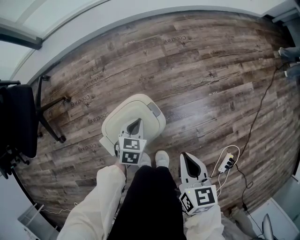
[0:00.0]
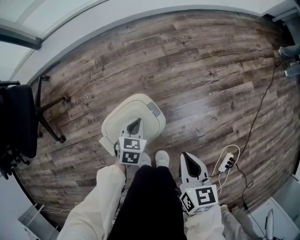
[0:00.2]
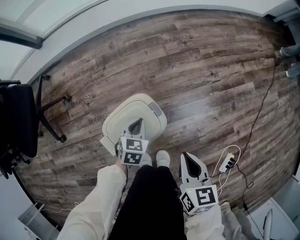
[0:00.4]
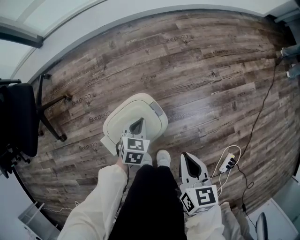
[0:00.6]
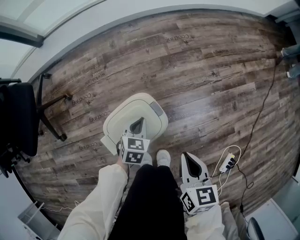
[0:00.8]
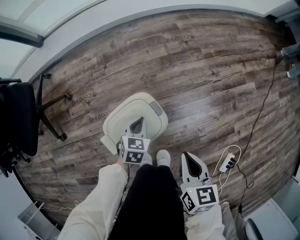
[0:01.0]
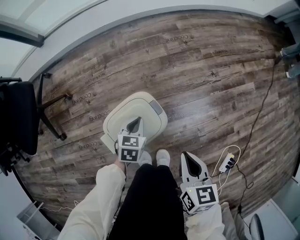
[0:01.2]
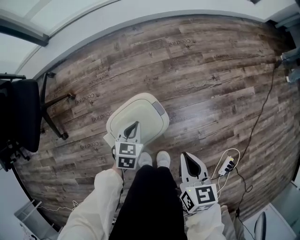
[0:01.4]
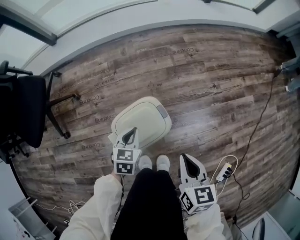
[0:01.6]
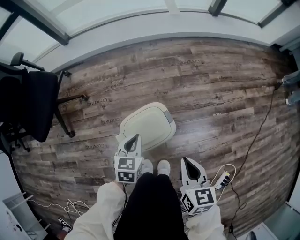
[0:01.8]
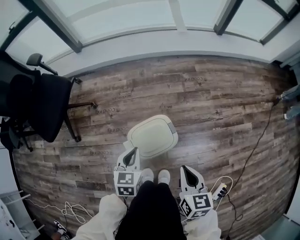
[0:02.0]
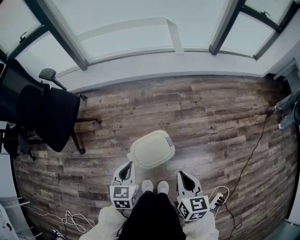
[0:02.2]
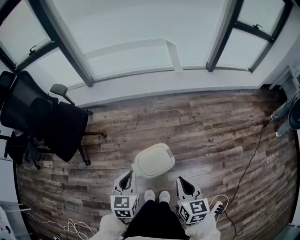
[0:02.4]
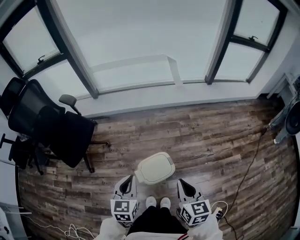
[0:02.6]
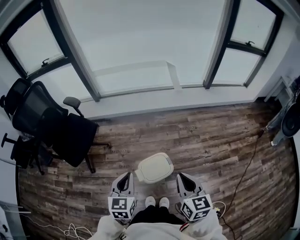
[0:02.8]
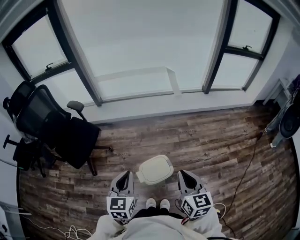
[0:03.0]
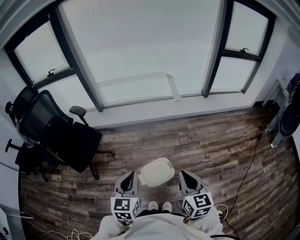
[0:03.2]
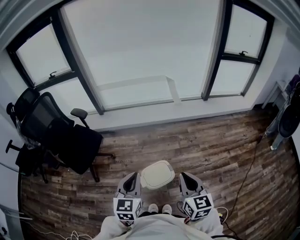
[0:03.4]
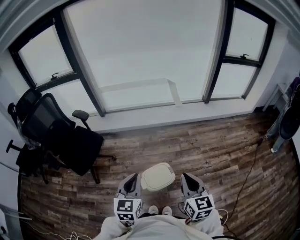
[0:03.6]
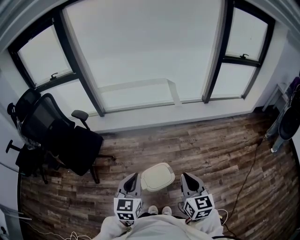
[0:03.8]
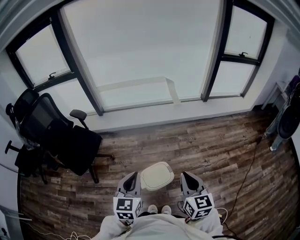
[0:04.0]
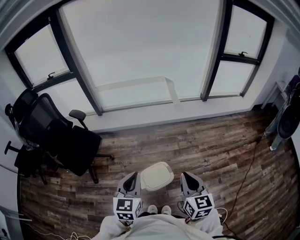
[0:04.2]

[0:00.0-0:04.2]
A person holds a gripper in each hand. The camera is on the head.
0:00.0 to 0:01.4: The grippers move only a little.
0:01.4 to 0:02.8: The two grippers go some 50 cm upward. The left gripper changes its angle by roughly 30 degrees. The right gripper rotates roughly 30 degrees.
0:02.8 to 0:04.2: The grippers both shift upward by approximately 10 cm.

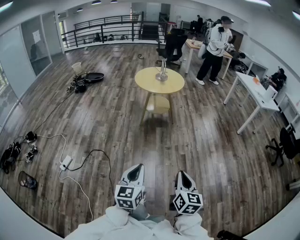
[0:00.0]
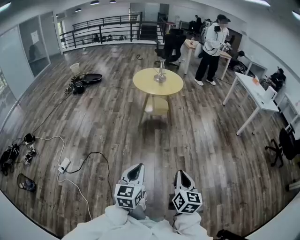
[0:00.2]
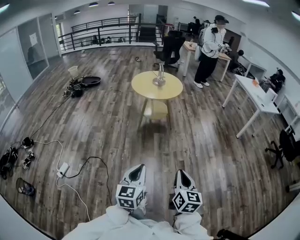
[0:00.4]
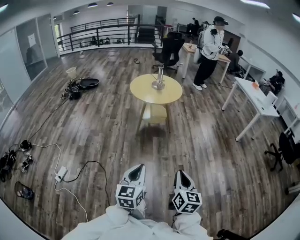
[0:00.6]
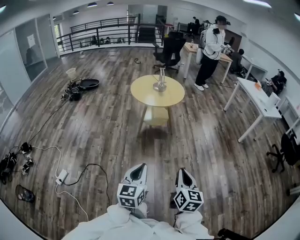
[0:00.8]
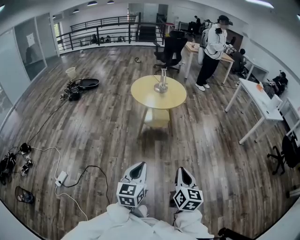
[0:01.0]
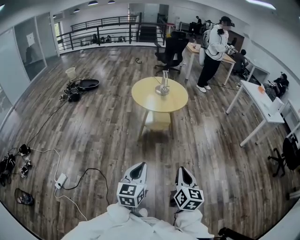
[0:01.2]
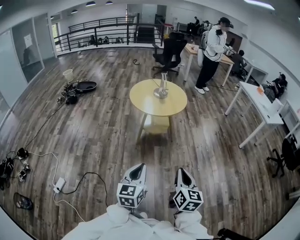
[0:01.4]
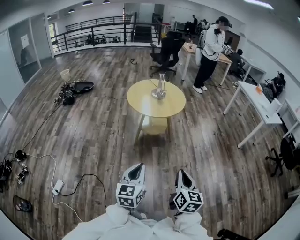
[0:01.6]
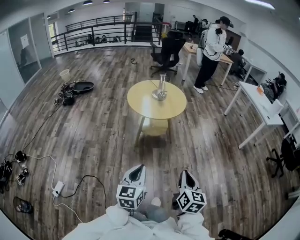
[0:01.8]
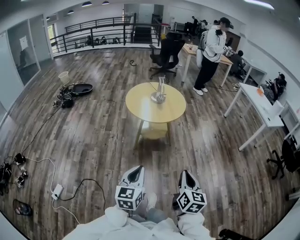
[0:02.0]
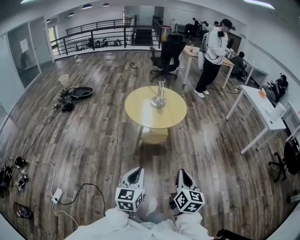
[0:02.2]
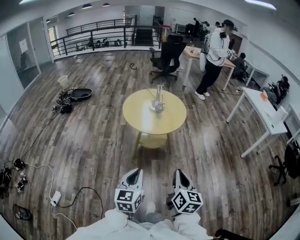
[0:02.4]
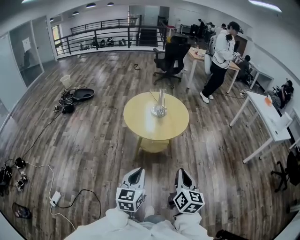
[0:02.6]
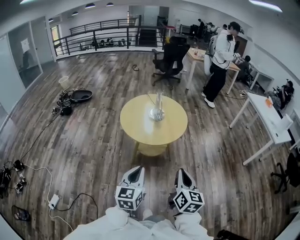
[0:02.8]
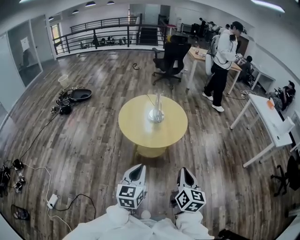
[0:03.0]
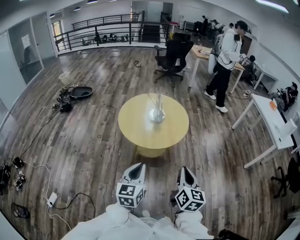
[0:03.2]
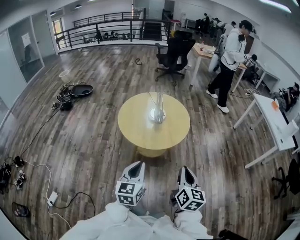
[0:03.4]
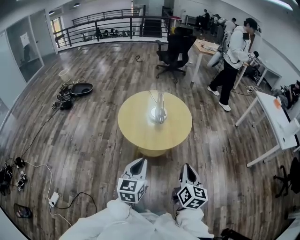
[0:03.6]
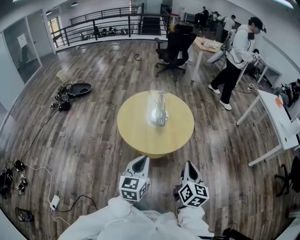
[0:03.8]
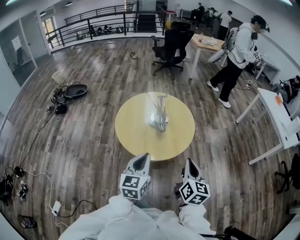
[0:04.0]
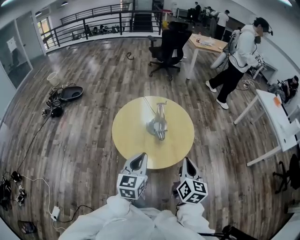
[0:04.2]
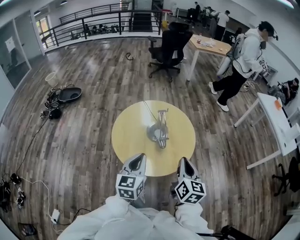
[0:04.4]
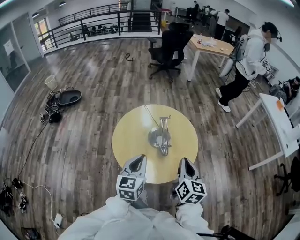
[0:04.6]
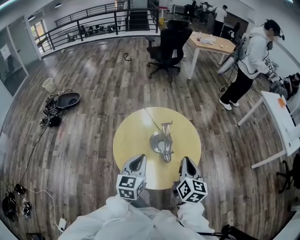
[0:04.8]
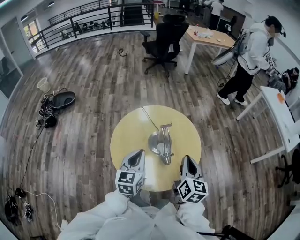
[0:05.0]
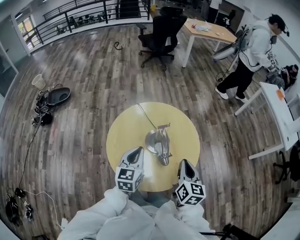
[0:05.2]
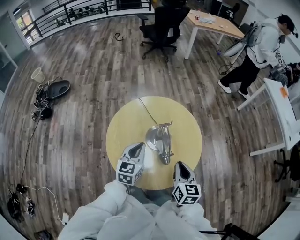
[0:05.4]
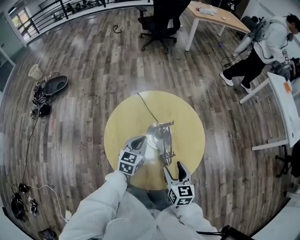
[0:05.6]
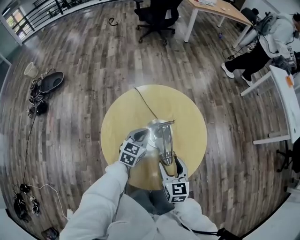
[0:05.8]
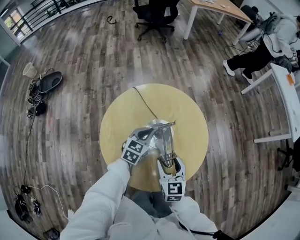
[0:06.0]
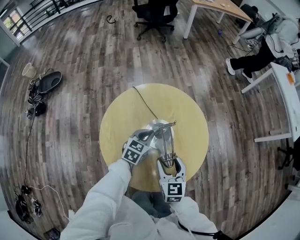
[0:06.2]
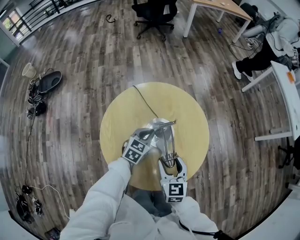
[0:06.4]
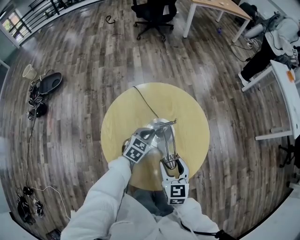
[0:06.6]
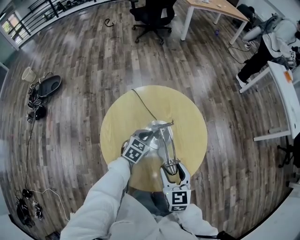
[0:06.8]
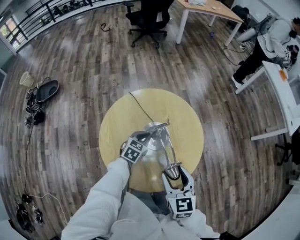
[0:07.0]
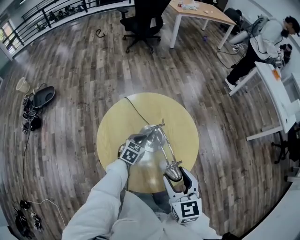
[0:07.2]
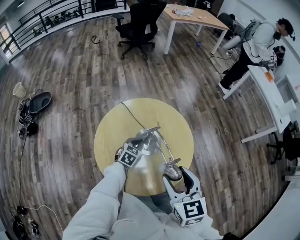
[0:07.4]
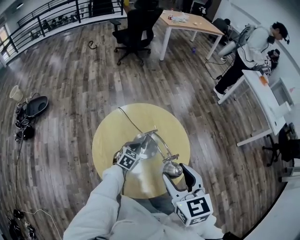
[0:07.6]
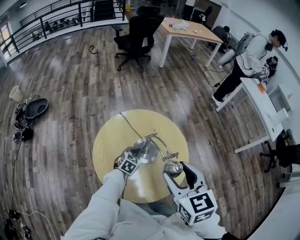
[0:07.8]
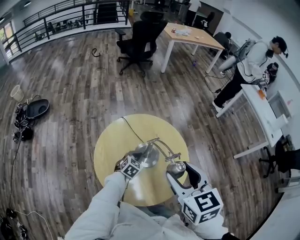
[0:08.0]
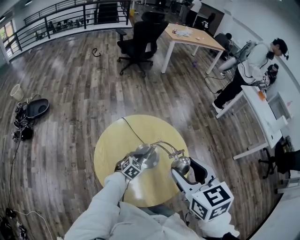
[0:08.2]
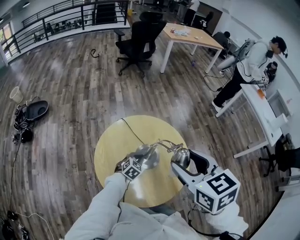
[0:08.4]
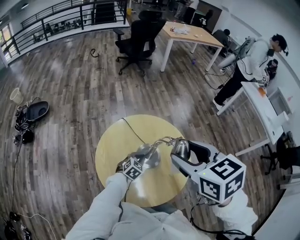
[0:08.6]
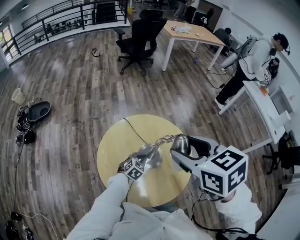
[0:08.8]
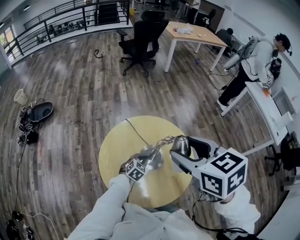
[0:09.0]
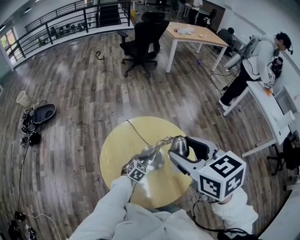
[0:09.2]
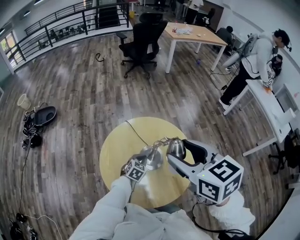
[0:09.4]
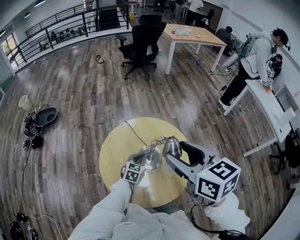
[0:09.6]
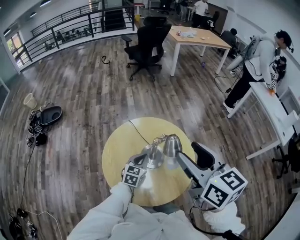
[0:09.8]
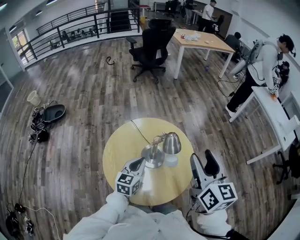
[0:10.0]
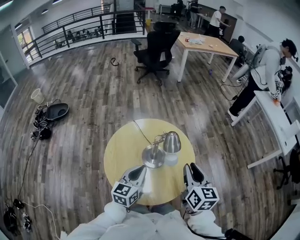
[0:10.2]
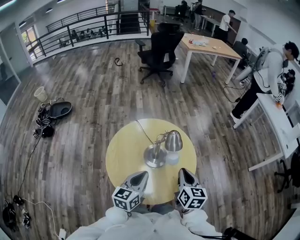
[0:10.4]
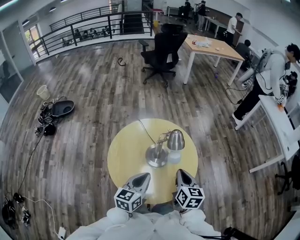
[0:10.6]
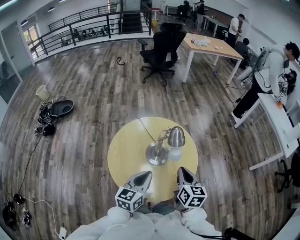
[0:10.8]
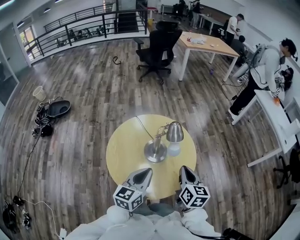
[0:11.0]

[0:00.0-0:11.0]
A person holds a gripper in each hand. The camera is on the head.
0:00.0 to 0:01.6: The two grippers go approximately 35 cm forward.
0:01.6 to 0:03.2: Both grippers travel together forward, about 35 cm.
0:03.2 to 0:04.8: Both grippers move forward, about 40 cm.
0:04.8 to 0:06.2: The right gripper goes some 20 cm downward, forward and to the left, changes its angle by about 20 degrees, and opens up. Meanwhile the left gripper shifts approximately 30 cm forward and downward, and turns by some 30 degrees.
0:06.2 to 0:07.8: The right gripper shifts roughly 25 cm upward.
0:07.8 to 0:09.4: The right gripper travels upward and forward by about 10 cm.
0:09.4 to 0:11.0: The right gripper shifts about 25 cm downward, to the right and backward, rotates roughly 30 degrees, and closes up. The left gripper moves upward and backward, approximately 30 cm, and points its fingers roughly 30 degrees further upward.

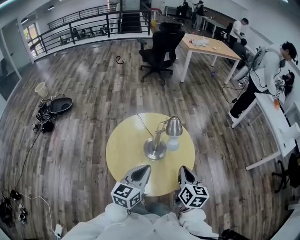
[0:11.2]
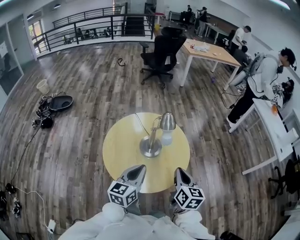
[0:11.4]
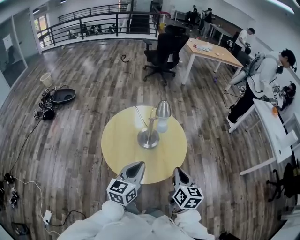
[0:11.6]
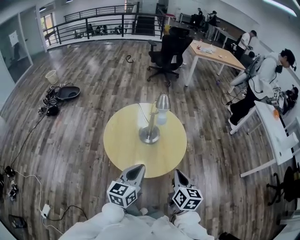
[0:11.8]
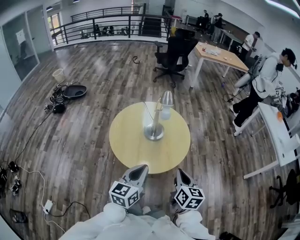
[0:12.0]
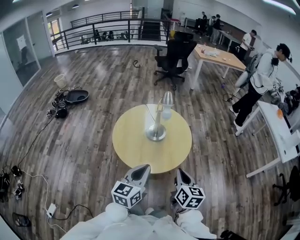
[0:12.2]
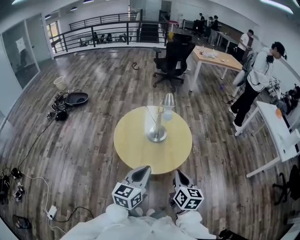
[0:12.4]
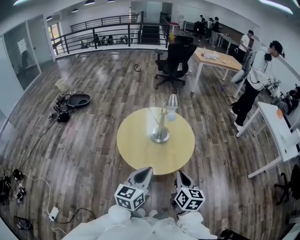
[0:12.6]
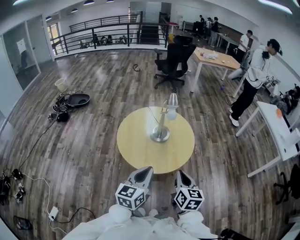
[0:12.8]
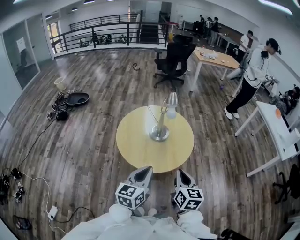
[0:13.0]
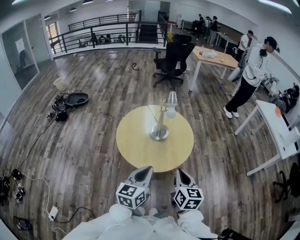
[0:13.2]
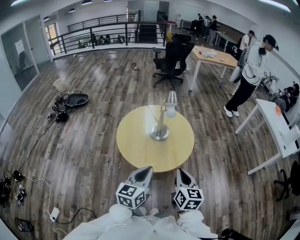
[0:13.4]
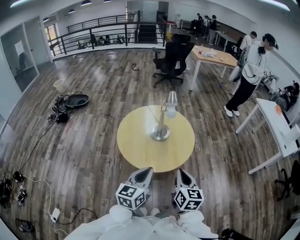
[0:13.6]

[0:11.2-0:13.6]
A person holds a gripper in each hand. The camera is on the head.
0:11.2 to 0:12.4: The two grippers go some 20 cm backward.
0:12.4 to 0:13.6: The grippers stay close to where they were, moving slightly.

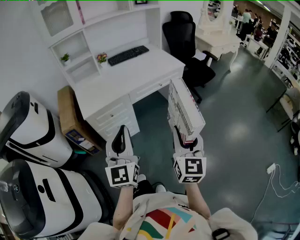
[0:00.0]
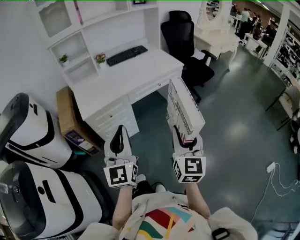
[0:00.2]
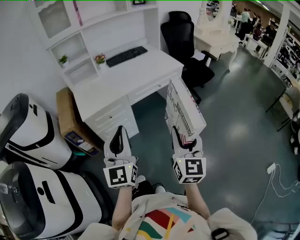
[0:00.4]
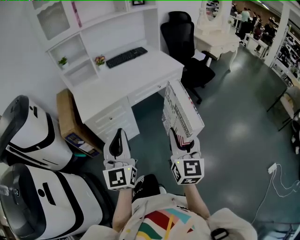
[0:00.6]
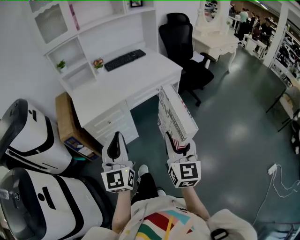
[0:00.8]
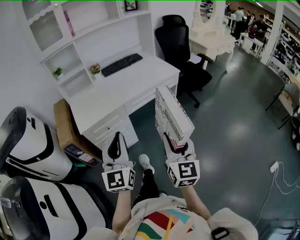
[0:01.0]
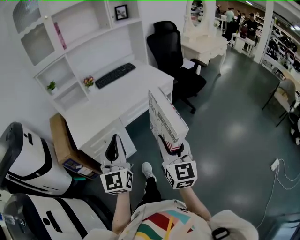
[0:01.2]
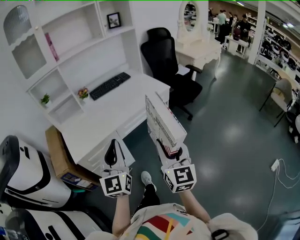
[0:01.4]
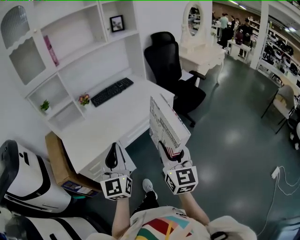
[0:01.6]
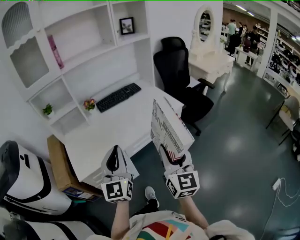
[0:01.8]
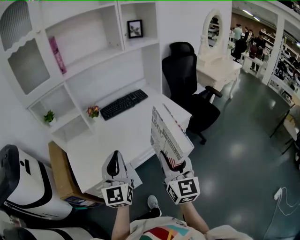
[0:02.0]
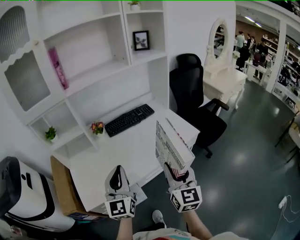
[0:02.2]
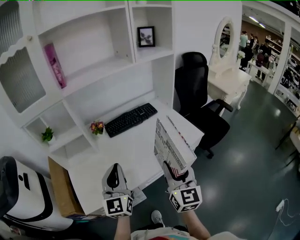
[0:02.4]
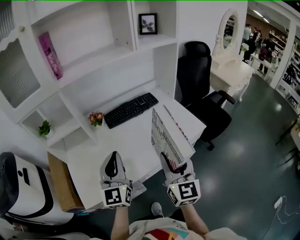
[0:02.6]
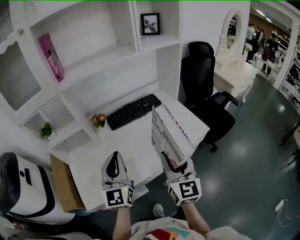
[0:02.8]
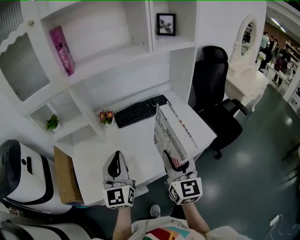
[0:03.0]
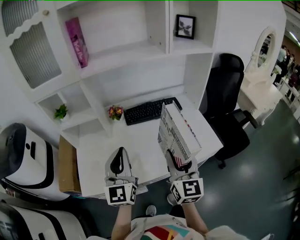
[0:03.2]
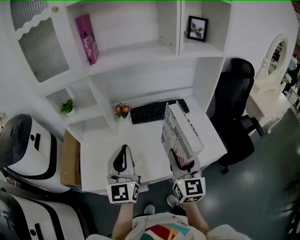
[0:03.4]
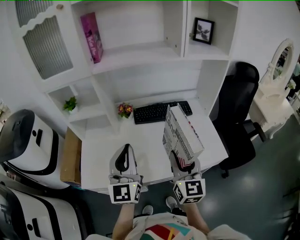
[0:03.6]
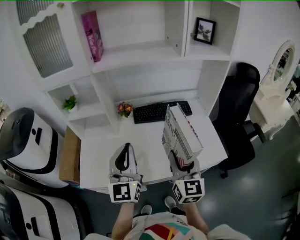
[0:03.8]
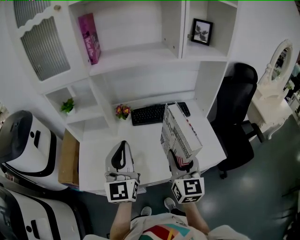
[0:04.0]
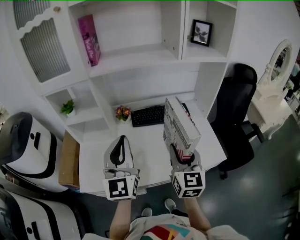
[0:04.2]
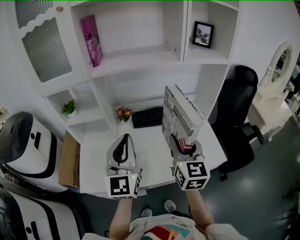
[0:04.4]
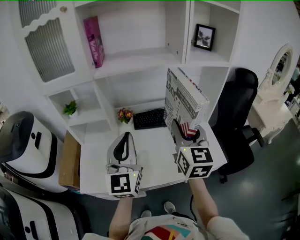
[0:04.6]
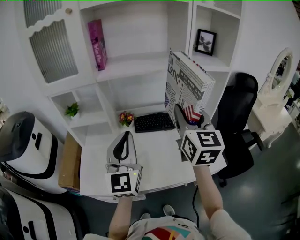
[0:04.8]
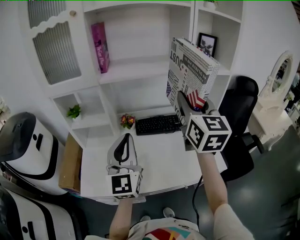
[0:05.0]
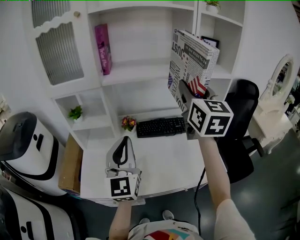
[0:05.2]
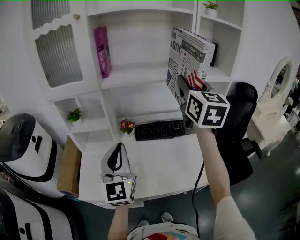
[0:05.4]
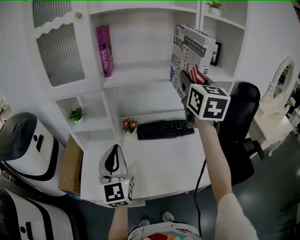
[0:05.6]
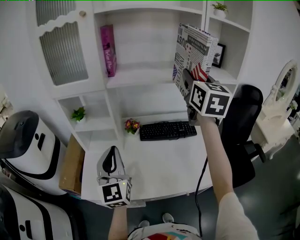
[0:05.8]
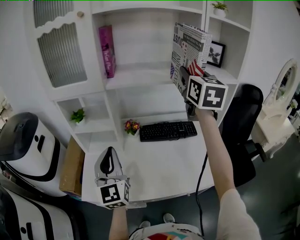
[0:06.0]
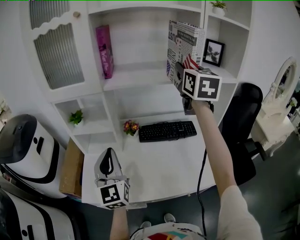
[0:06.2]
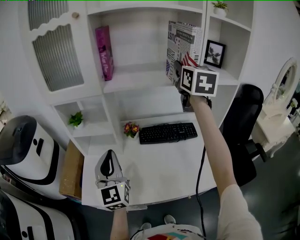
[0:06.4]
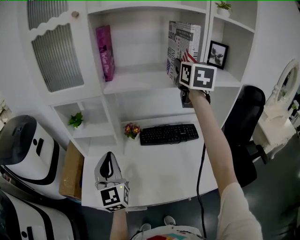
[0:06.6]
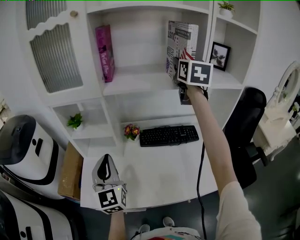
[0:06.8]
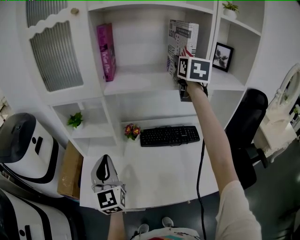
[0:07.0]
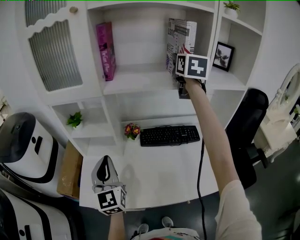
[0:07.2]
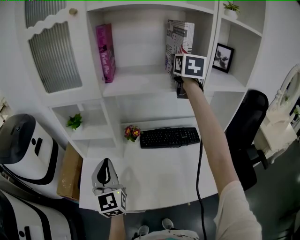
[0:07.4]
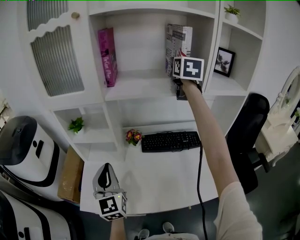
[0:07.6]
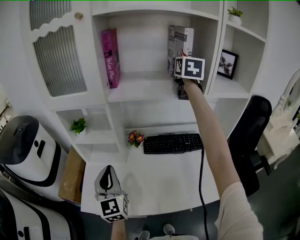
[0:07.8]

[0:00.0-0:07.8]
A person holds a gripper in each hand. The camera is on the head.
0:00.0 to 0:01.6: The two grippers go approximately 20 cm forward.
0:01.6 to 0:03.2: Both grippers move forward, some 35 cm.
0:03.2 to 0:04.6: The right gripper shifts about 15 cm forward and upward. The left gripper moves upward, about 5 cm.
0:04.6 to 0:06.2: The right gripper travels forward and upward by about 25 cm; the left gripper travels to the left by some 10 cm.
0:06.2 to 0:07.8: The left gripper goes about 5 cm downward. Meanwhile the right gripper is displaced forward by about 15 cm.
